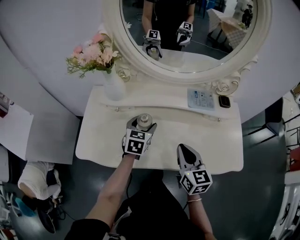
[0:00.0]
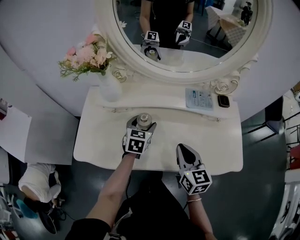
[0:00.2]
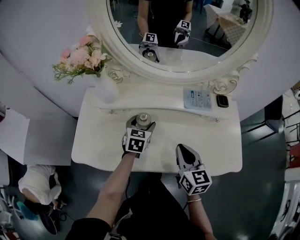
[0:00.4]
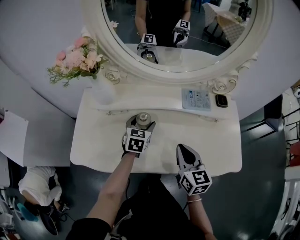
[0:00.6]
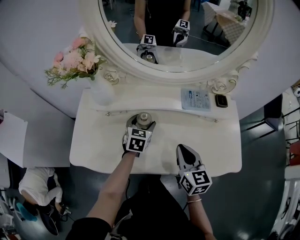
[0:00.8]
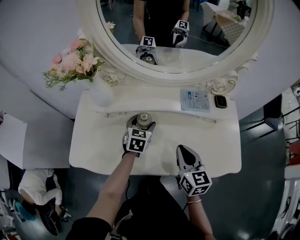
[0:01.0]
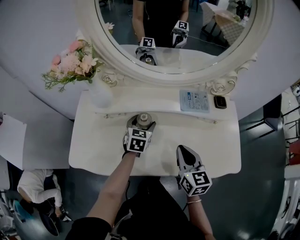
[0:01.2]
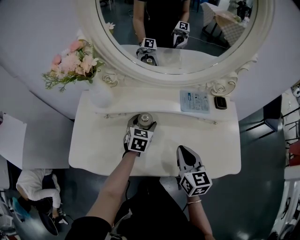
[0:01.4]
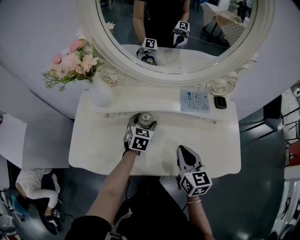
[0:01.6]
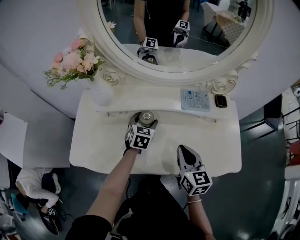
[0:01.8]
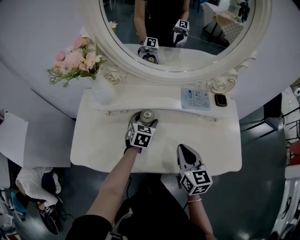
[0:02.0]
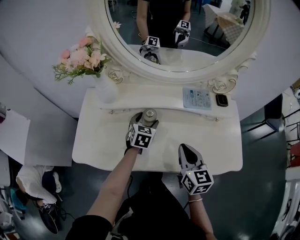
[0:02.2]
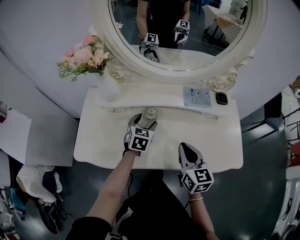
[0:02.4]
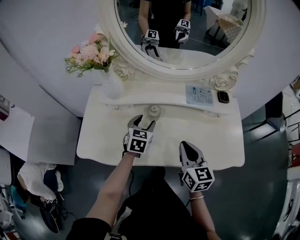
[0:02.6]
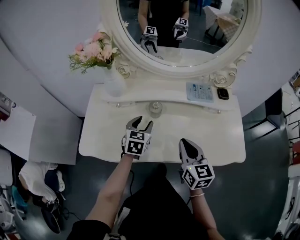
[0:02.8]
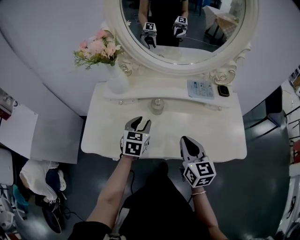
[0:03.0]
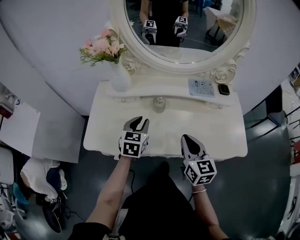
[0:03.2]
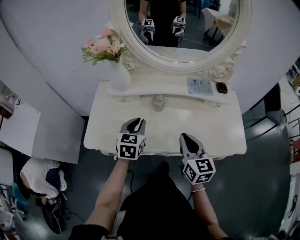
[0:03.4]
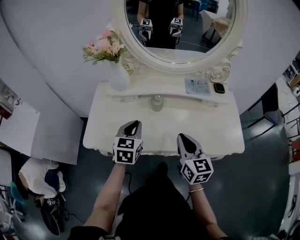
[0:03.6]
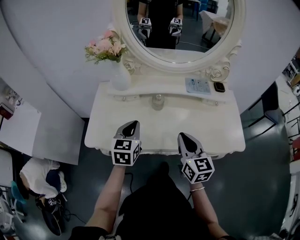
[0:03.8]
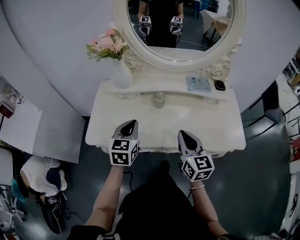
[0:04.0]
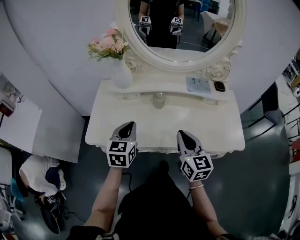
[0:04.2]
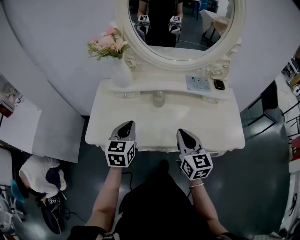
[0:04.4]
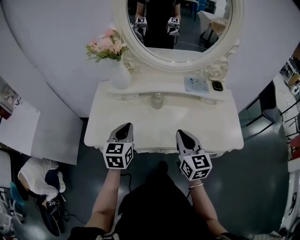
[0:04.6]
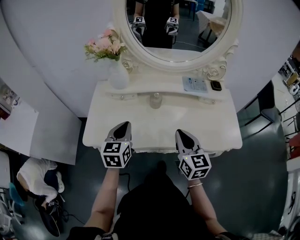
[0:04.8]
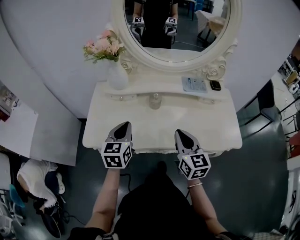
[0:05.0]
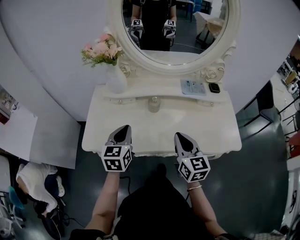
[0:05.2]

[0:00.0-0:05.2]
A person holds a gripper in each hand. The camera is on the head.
0:00.0 to 0:01.8: The left gripper shifts some 5 cm forward.
0:01.8 to 0:03.4: The right gripper goes roughly 5 cm backward. Meanwhile the left gripper travels backward, upward and to the left by roughly 20 cm, and closes.
0:03.4 to 0:05.2: The left gripper changes place by about 5 cm.

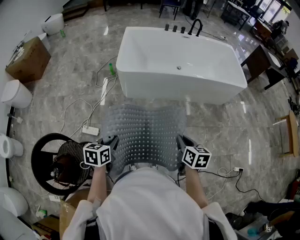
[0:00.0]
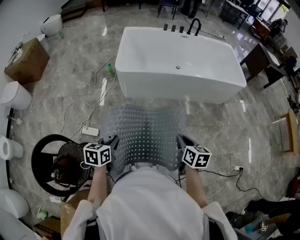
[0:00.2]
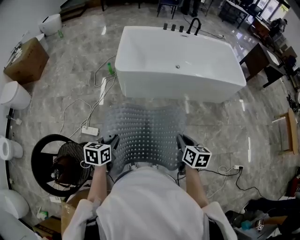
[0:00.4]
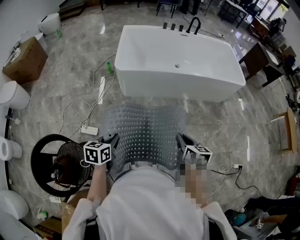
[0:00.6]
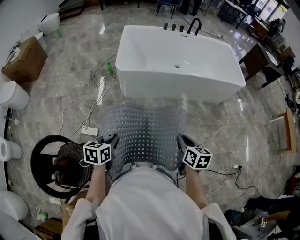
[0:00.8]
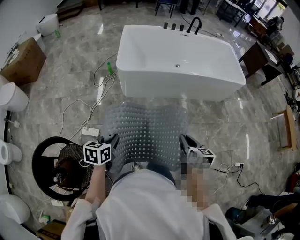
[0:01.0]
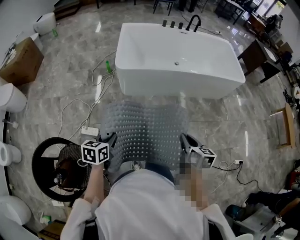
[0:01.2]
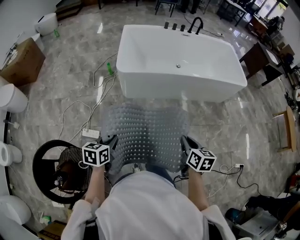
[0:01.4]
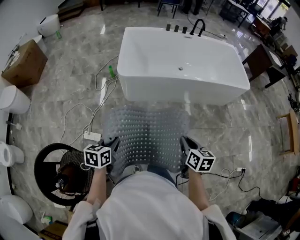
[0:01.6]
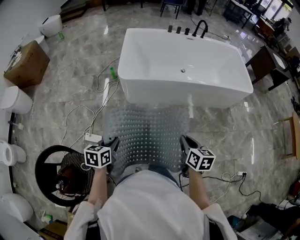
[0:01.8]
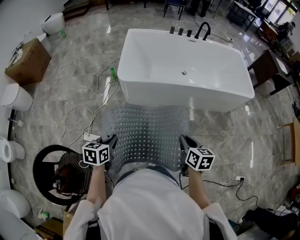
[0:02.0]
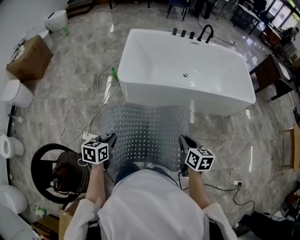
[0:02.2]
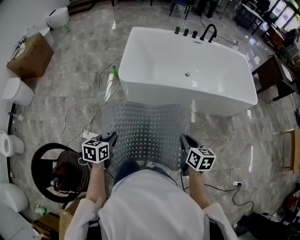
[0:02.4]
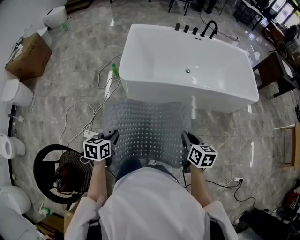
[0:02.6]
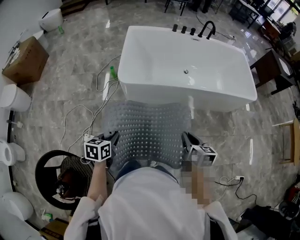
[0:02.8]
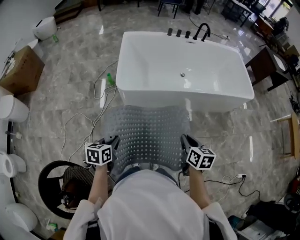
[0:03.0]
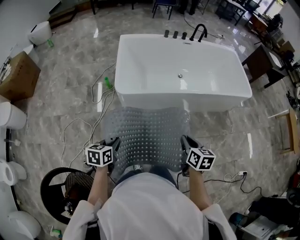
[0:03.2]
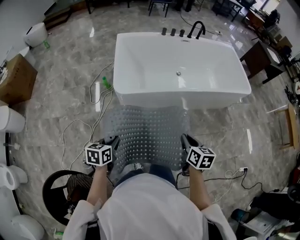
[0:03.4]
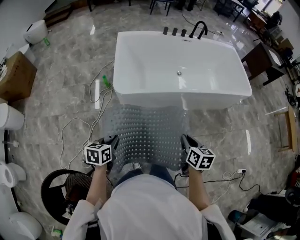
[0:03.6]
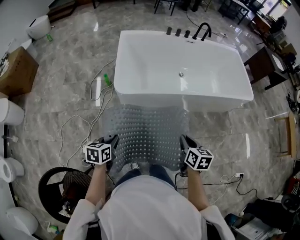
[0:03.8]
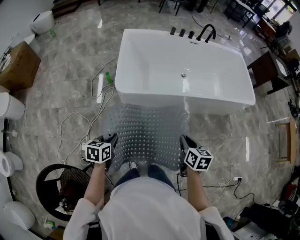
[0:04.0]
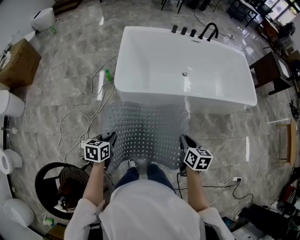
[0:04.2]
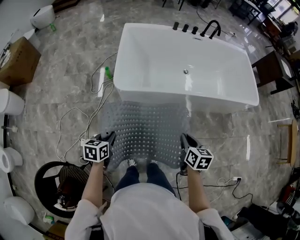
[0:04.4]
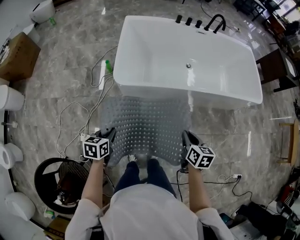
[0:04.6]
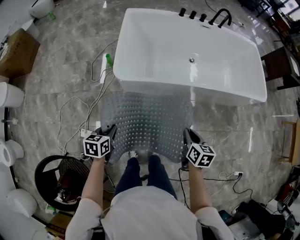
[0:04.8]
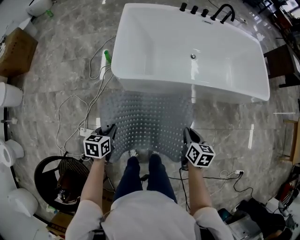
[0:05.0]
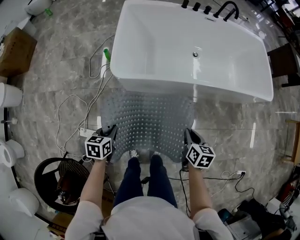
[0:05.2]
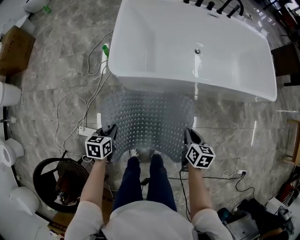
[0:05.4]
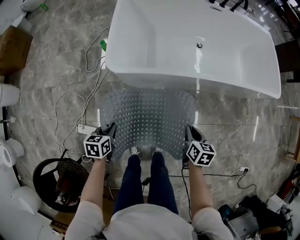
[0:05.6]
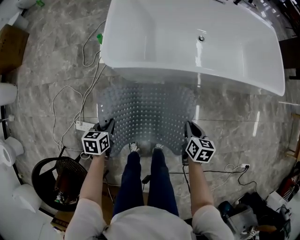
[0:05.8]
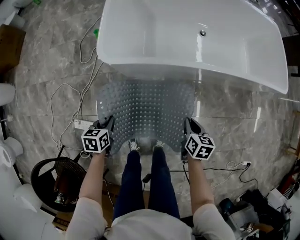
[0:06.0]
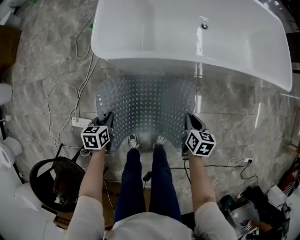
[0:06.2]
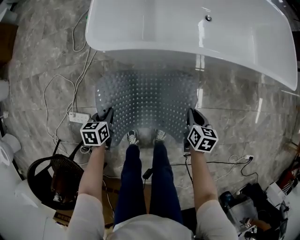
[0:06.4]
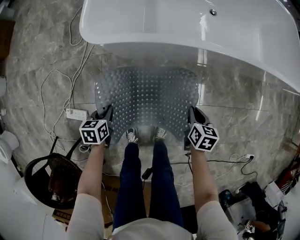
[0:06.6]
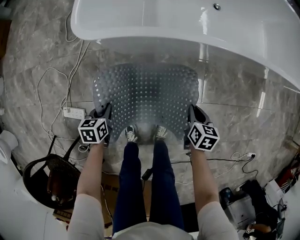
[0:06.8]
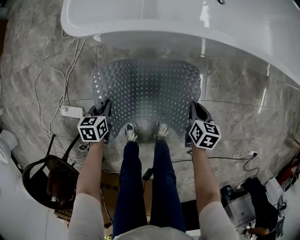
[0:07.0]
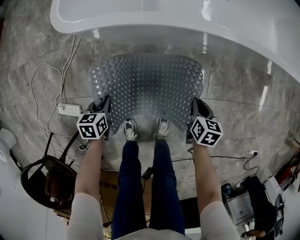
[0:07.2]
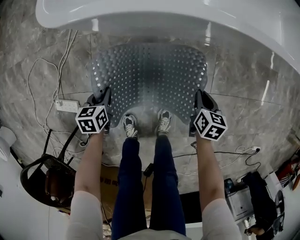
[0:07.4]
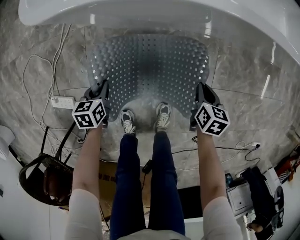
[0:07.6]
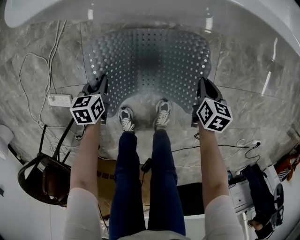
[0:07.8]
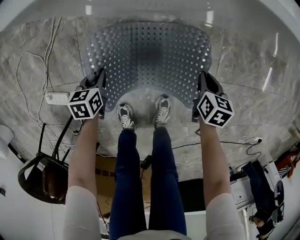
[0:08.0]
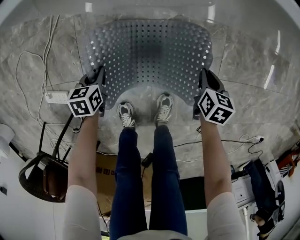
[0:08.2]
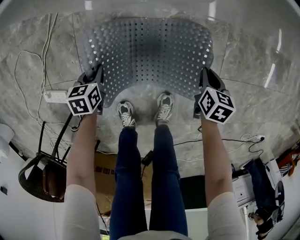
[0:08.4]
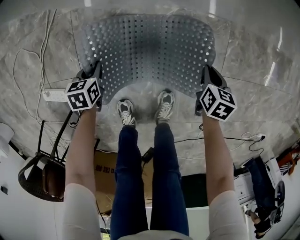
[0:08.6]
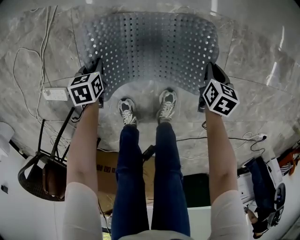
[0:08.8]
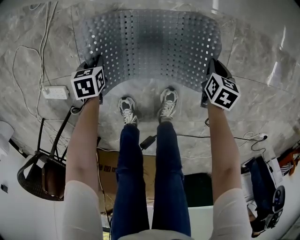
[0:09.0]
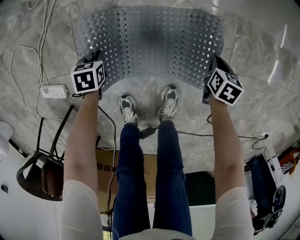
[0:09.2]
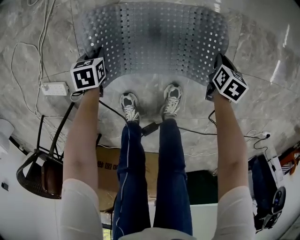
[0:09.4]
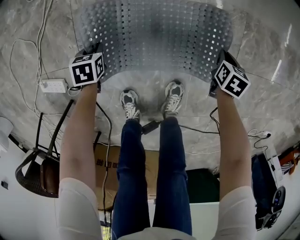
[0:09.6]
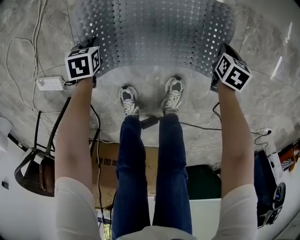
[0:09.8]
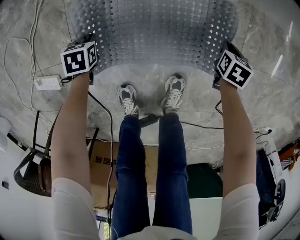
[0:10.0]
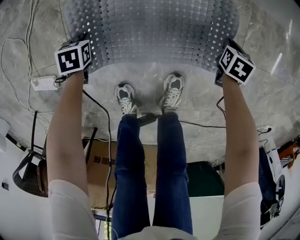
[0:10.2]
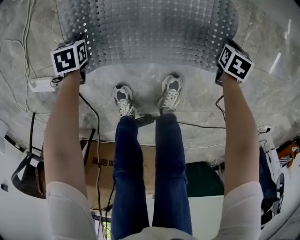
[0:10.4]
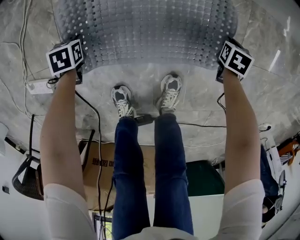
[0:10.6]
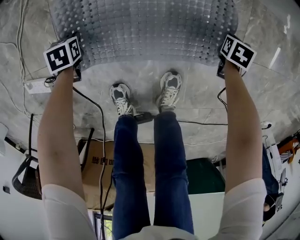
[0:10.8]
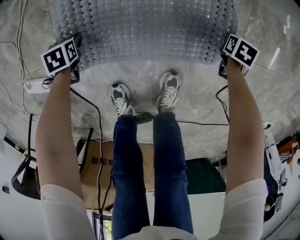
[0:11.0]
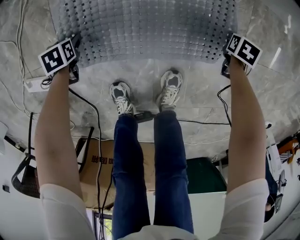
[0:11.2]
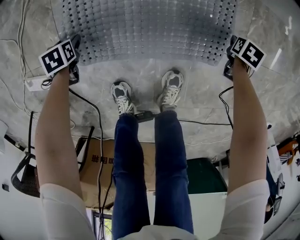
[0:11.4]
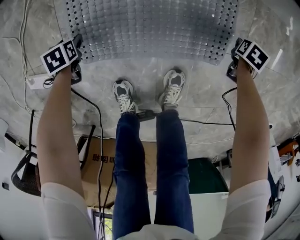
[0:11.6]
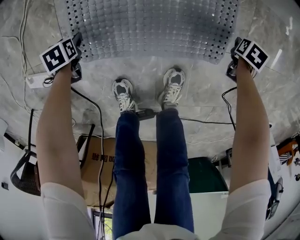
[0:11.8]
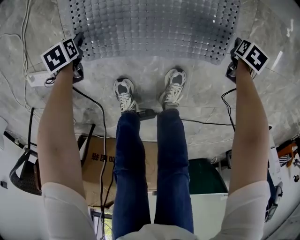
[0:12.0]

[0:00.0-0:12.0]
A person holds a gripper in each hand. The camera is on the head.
0:00.0 to 0:01.6: Both grippers travel together forward, roughly 5 cm.
0:01.6 to 0:03.0: The two grippers go some 15 cm forward.
0:03.0 to 0:04.4: The left gripper goes roughly 10 cm forward and downward; the right gripper goes about 10 cm forward.
0:04.4 to 0:06.0: Both grippers travel together downward, approximately 25 cm.
0:06.0 to 0:07.6: Both grippers travel together downward, approximately 30 cm.
0:07.6 to 0:09.0: Both grippers travel together downward, approximately 15 cm.
0:09.0 to 0:10.4: Both grippers travel together downward, approximately 10 cm.
0:10.4 to 0:12.0: The left gripper moves approximately 5 cm, and opens. Meanwhile the right gripper ends up about 5 cm from where it was, and opens up.

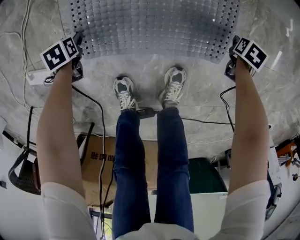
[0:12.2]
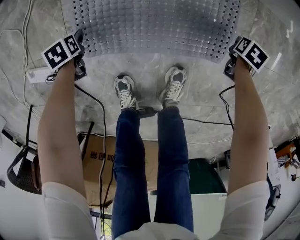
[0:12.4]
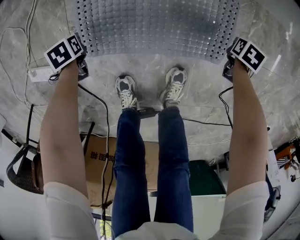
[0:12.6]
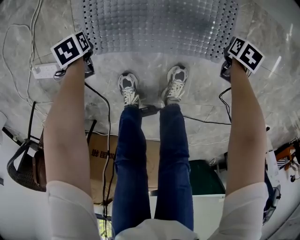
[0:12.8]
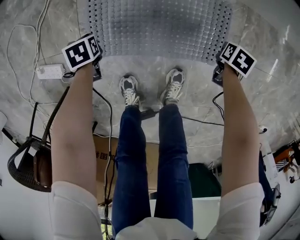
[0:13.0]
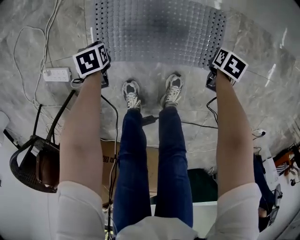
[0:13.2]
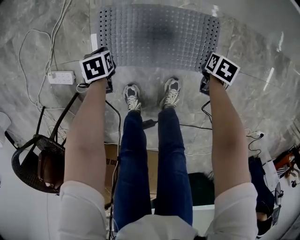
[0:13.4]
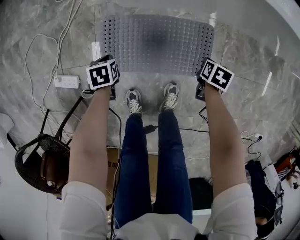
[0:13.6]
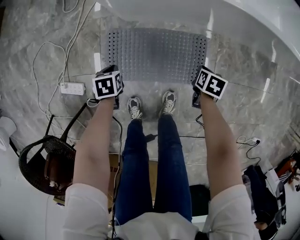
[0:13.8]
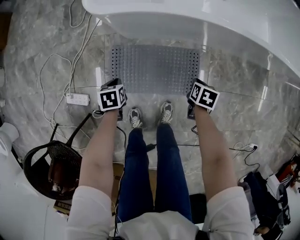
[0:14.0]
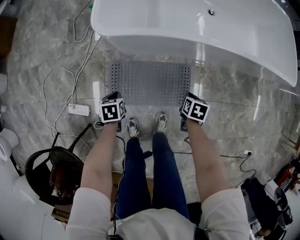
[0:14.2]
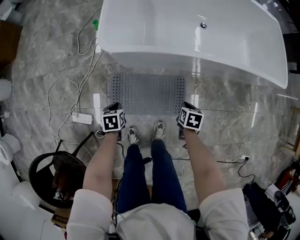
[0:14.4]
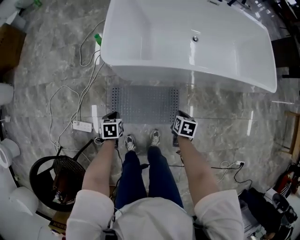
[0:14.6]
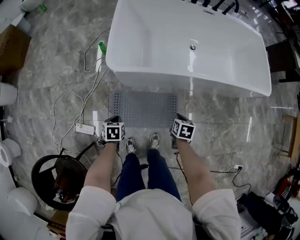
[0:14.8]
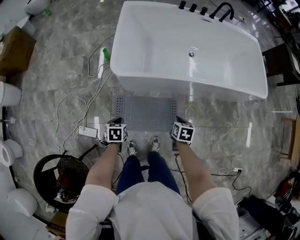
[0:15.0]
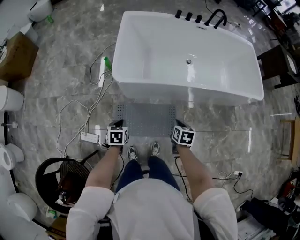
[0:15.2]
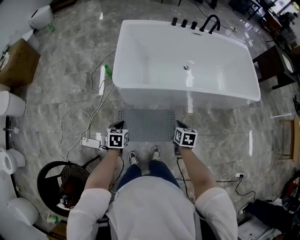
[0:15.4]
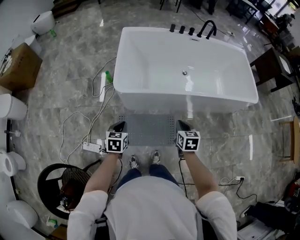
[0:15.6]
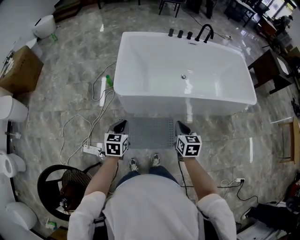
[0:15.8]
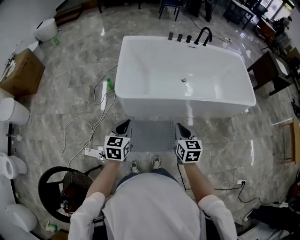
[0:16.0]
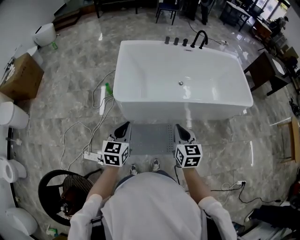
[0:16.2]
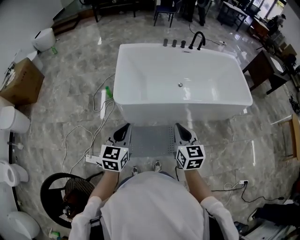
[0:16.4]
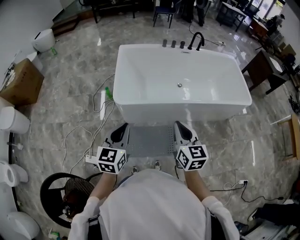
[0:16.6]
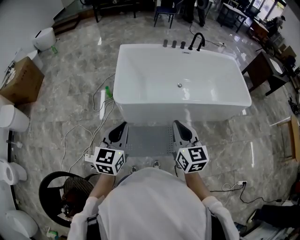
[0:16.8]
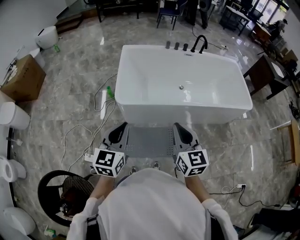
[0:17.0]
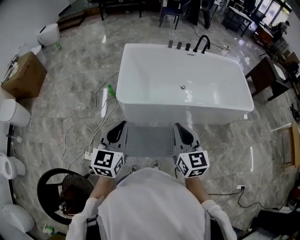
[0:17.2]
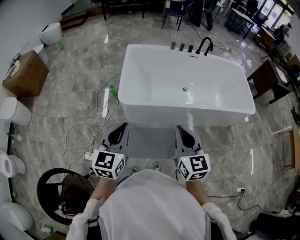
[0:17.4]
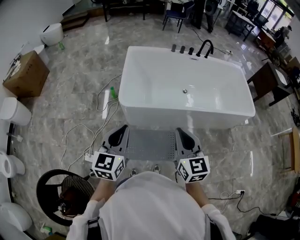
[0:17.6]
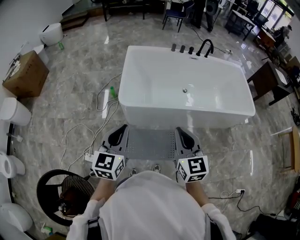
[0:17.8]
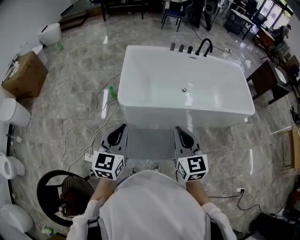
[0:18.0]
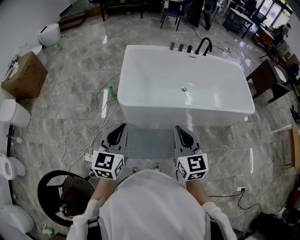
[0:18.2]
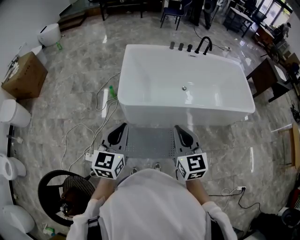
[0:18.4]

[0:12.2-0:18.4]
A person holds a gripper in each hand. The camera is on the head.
0:12.2 to 0:13.8: Both grippers travel together upward, approximately 25 cm. The right gripper closes; the left gripper closes.
0:13.8 to 0:15.4: The two grippers go roughly 40 cm upward. The right gripper swivels approximately 20 degrees; the left gripper turns by roughly 20 degrees.
0:15.4 to 0:16.8: Both grippers travel together upward, roughly 30 cm. The right gripper tilts its fingers some 40 degrees upward, while the left gripper tilts its fingers roughly 40 degrees upward.
0:16.8 to 0:18.4: There are only small adjustments of the grippers.
